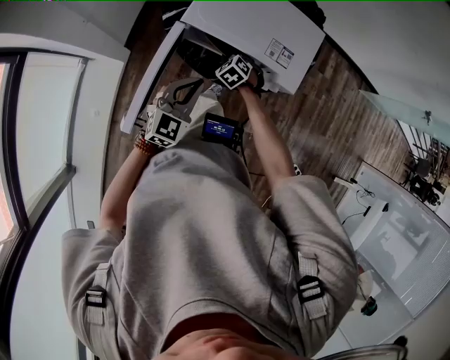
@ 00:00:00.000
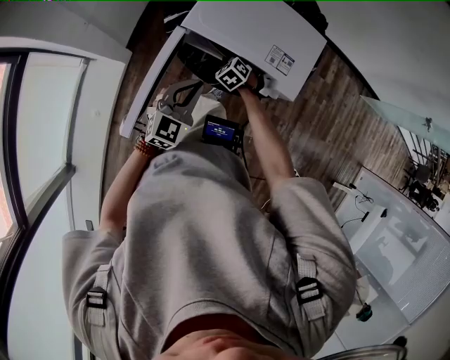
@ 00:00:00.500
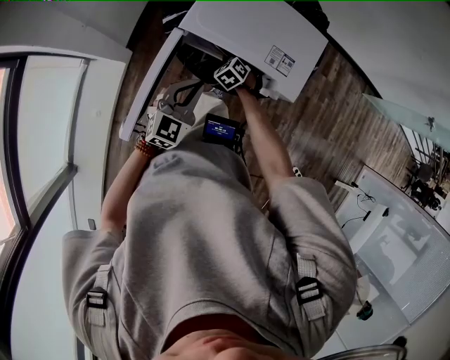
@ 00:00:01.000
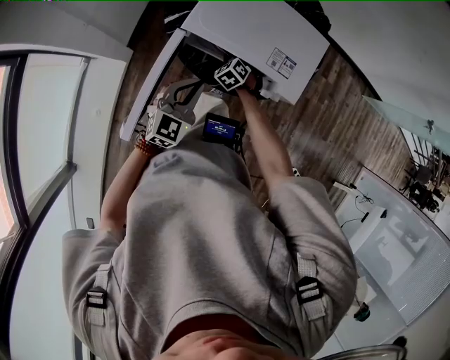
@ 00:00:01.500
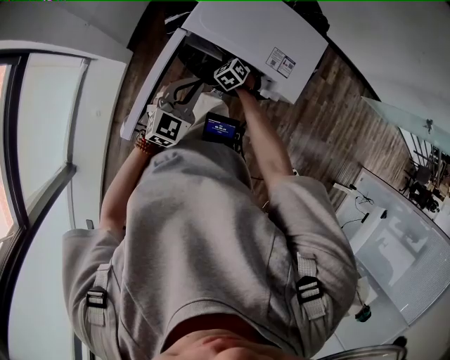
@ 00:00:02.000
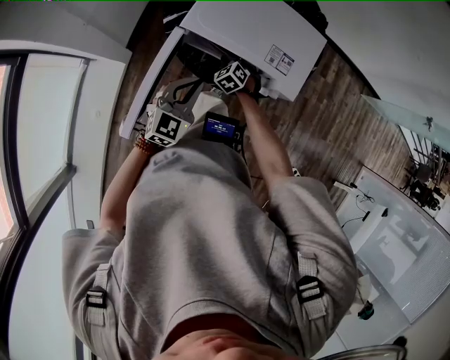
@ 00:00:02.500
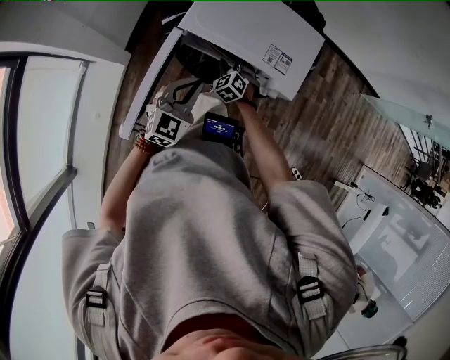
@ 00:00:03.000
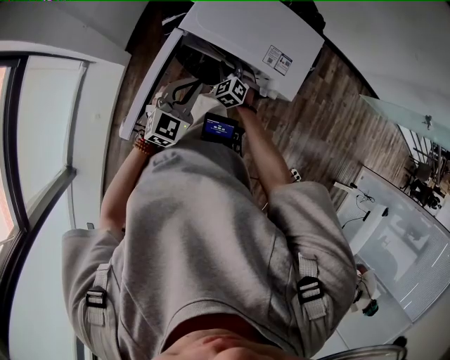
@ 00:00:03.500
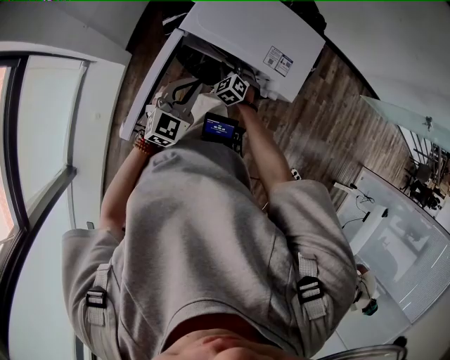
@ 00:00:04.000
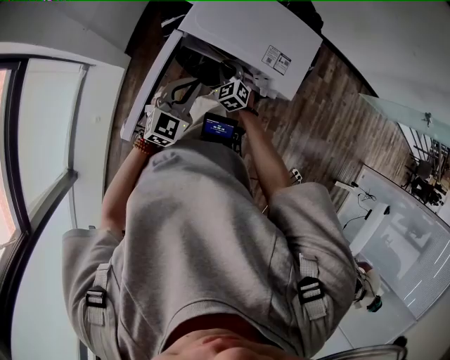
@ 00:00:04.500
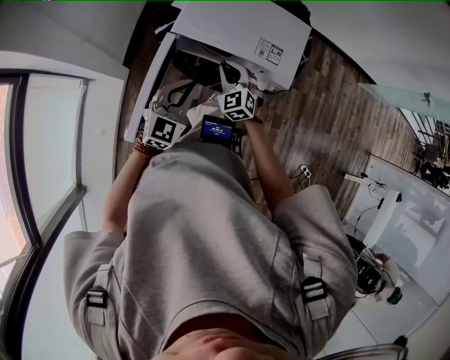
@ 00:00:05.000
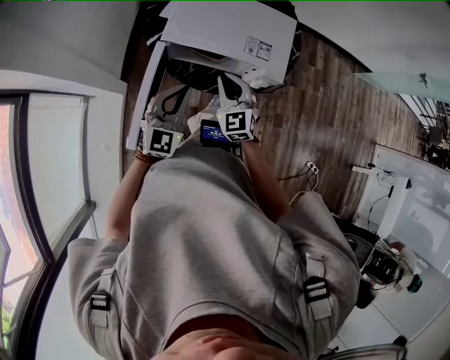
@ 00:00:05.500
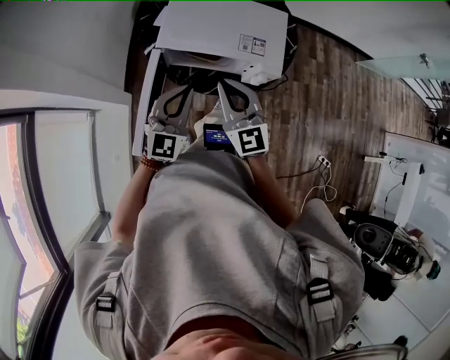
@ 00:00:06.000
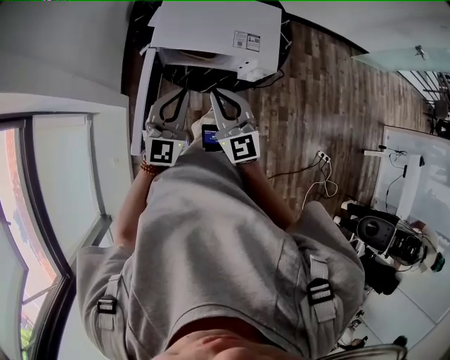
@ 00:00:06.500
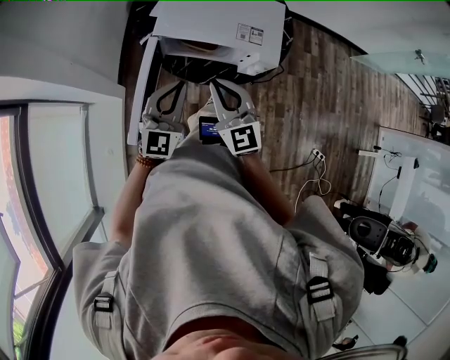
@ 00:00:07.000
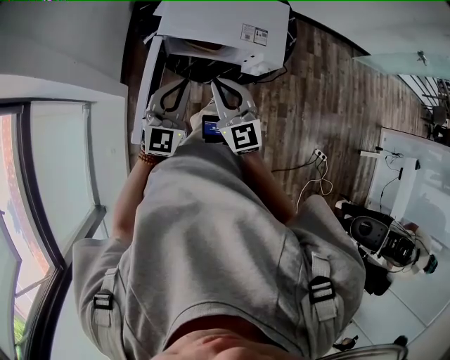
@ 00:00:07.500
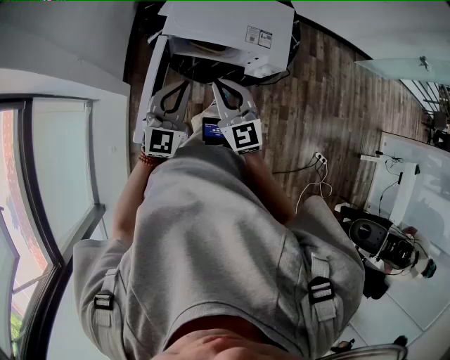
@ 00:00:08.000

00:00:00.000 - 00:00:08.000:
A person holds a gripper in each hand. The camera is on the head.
00:00:00.000 - 00:00:02.000: The grippers move only a little.
00:00:02.000 - 00:00:04.000: The grippers move only a little.
00:00:04.000 - 00:00:06.000: The right gripper is displaced upward and backward by some 35 cm, and tips its fingers upward by roughly 40 degrees, while the left gripper moves upward, about 10 cm.
00:00:06.000 - 00:00:08.000: The right gripper changes place by approximately 5 cm.

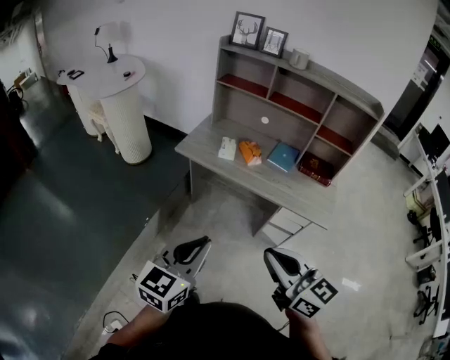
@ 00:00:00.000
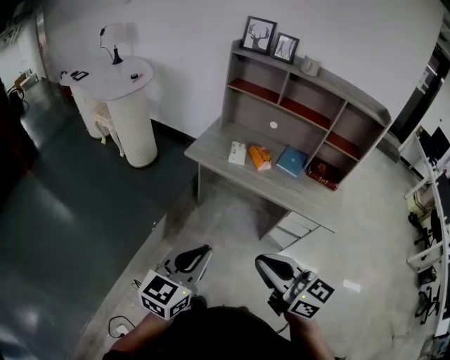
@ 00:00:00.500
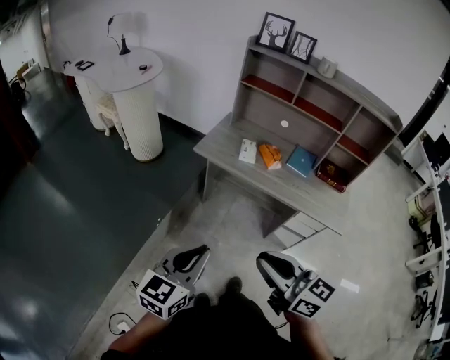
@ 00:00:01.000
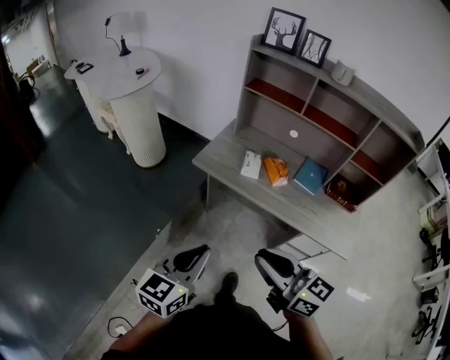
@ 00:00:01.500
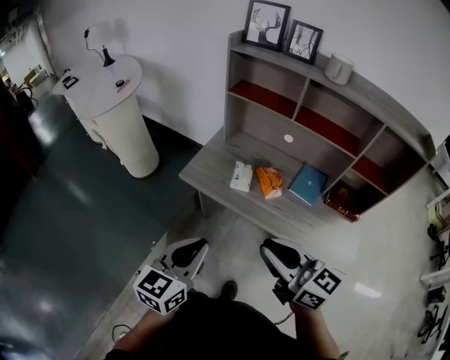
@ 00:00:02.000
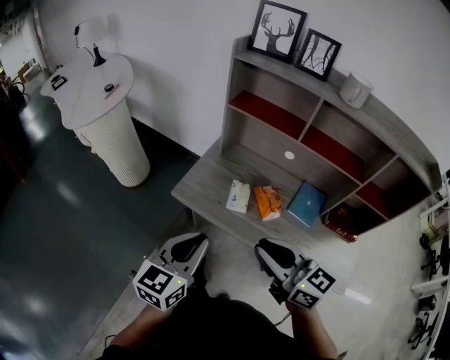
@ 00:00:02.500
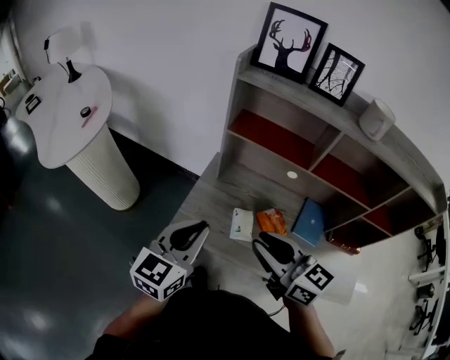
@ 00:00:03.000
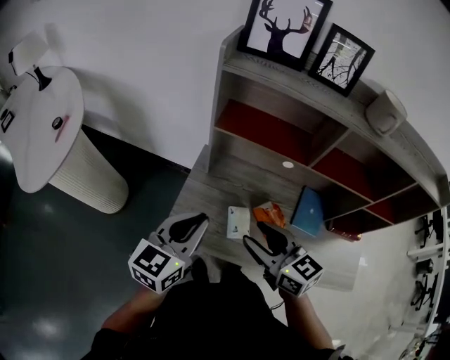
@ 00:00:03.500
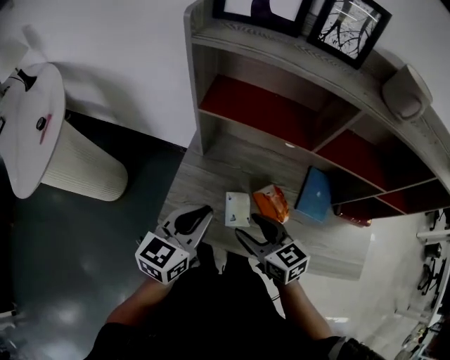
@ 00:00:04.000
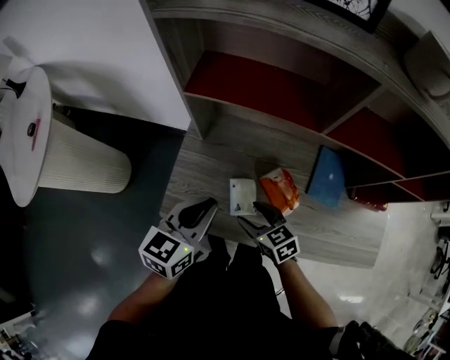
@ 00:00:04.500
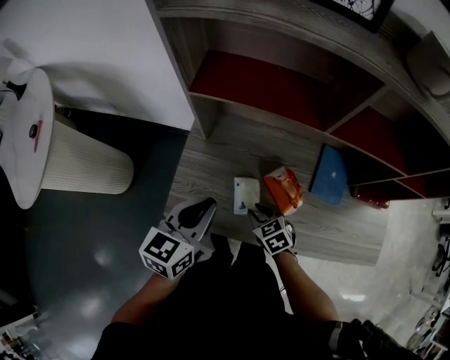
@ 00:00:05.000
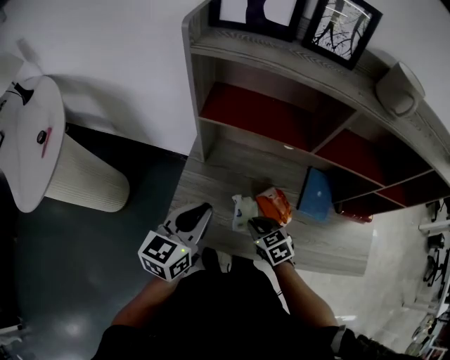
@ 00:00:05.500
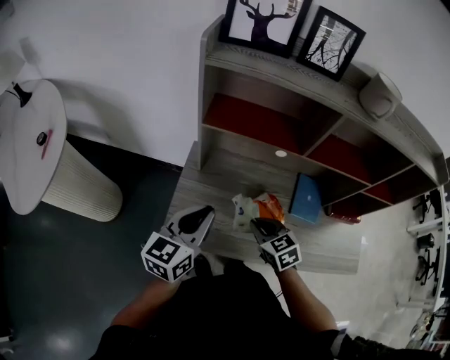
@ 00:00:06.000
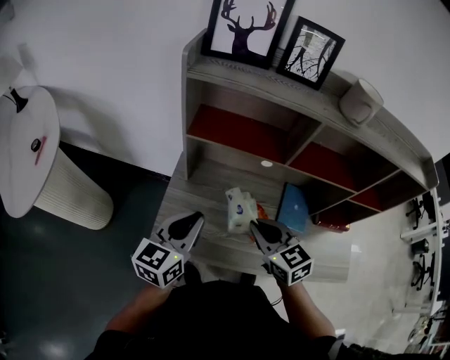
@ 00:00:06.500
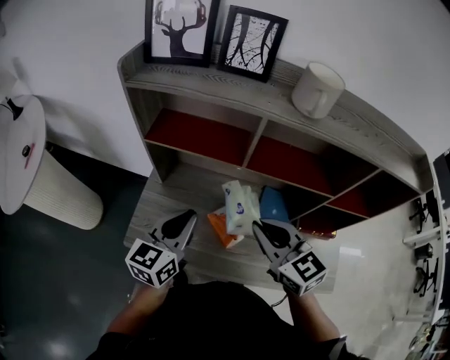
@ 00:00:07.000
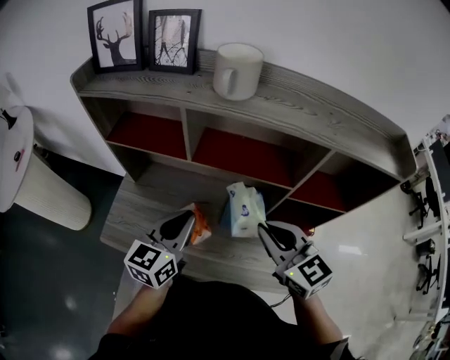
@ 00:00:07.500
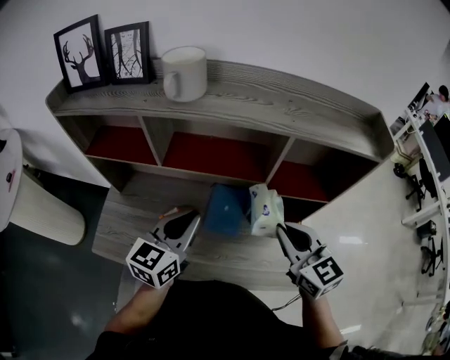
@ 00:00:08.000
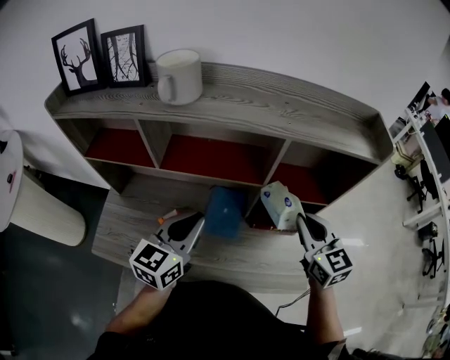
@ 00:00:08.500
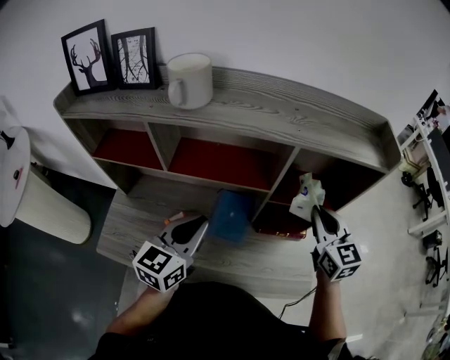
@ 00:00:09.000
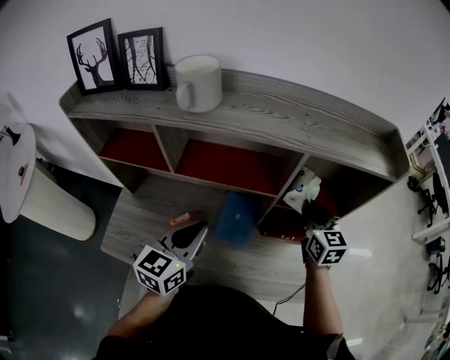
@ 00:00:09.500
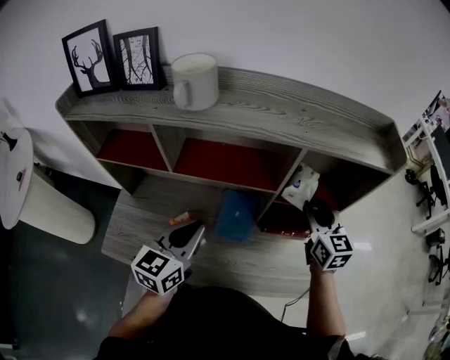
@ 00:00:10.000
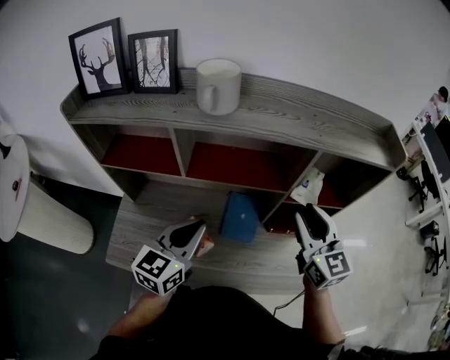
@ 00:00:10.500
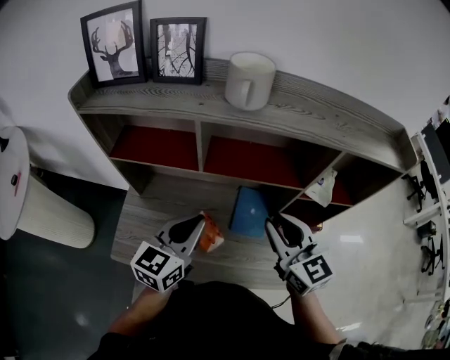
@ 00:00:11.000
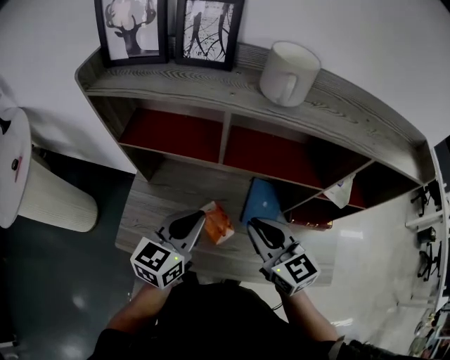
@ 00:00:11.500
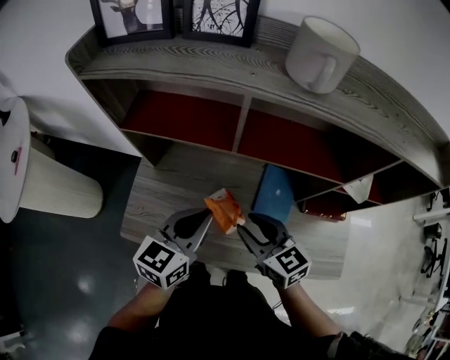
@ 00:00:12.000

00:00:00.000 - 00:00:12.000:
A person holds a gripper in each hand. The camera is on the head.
00:00:00.000 - 00:00:02.000: Both grippers move forward, roughly 25 cm.
00:00:02.000 - 00:00:04.000: The left gripper shifts roughly 40 cm forward; the right gripper travels forward and downward by approximately 40 cm, turns by some 30 degrees, and opens its fingers.
00:00:04.000 - 00:00:06.000: The right gripper moves some 20 cm downward and comes back, swivels about 20 degrees, and closes up.
00:00:06.000 - 00:00:08.000: The left gripper goes approximately 35 cm to the right. The right gripper shifts about 50 cm to the right and upward, and changes its angle by about 30 degrees.
00:00:08.000 - 00:00:10.000: The right gripper moves forward and to the right, roughly 15 cm, and turns by about 20 degrees.
00:00:10.000 - 00:00:12.000: The left gripper goes about 15 cm to the left. Meanwhile the right gripper travels to the left by about 35 cm, and rotates about 30 degrees.

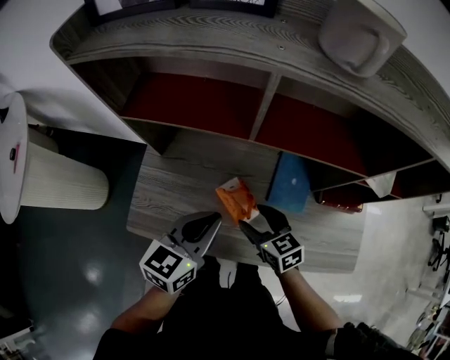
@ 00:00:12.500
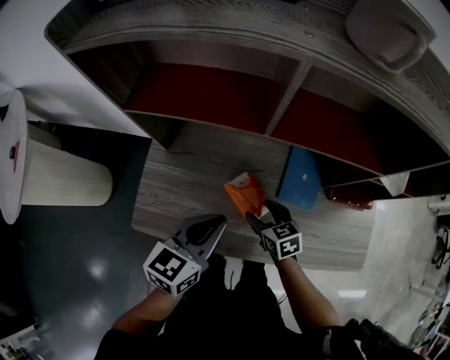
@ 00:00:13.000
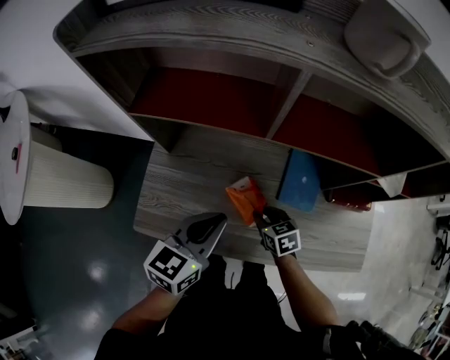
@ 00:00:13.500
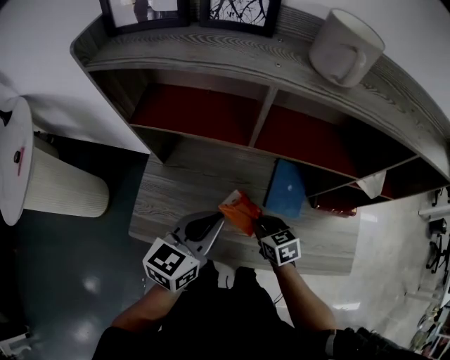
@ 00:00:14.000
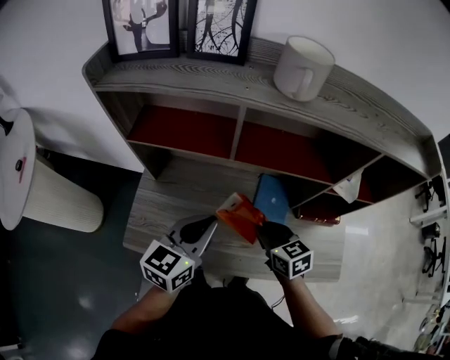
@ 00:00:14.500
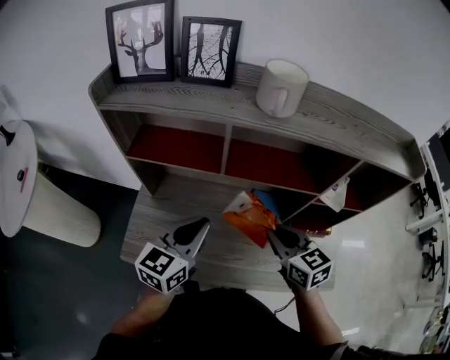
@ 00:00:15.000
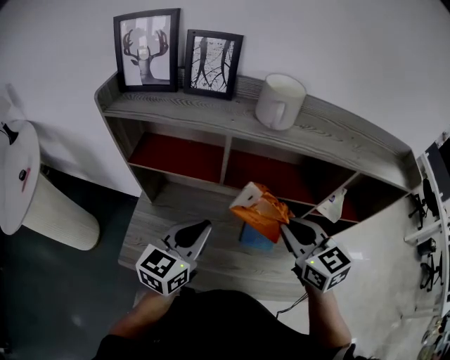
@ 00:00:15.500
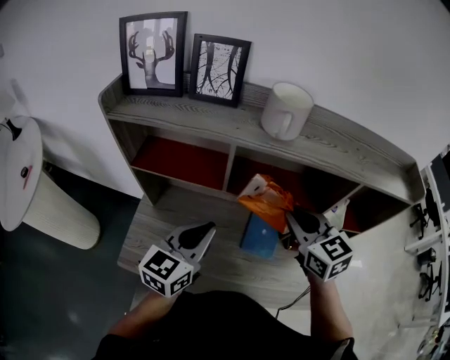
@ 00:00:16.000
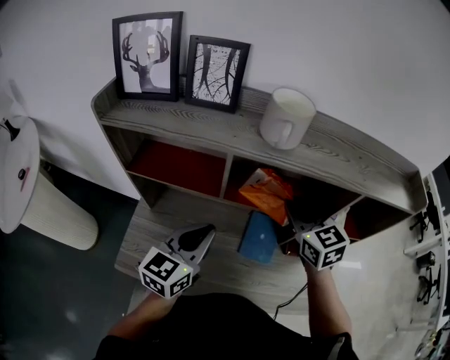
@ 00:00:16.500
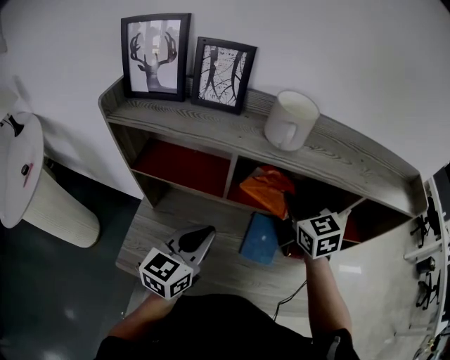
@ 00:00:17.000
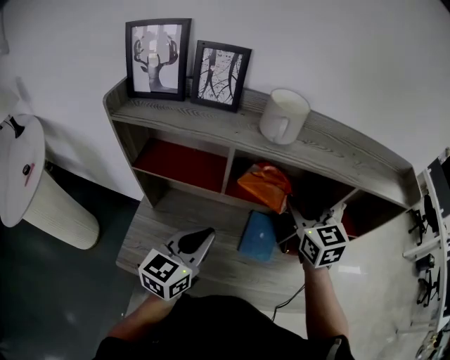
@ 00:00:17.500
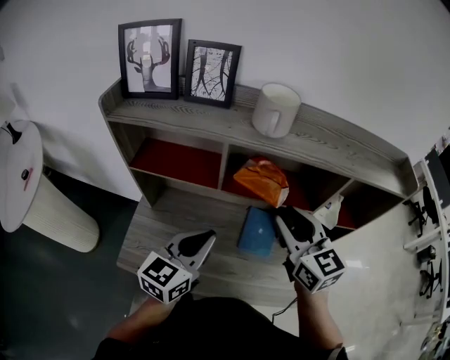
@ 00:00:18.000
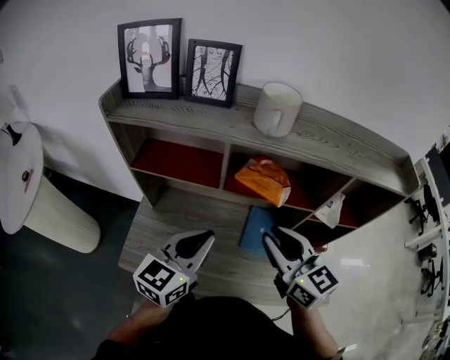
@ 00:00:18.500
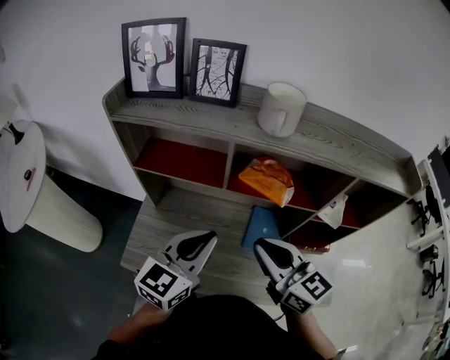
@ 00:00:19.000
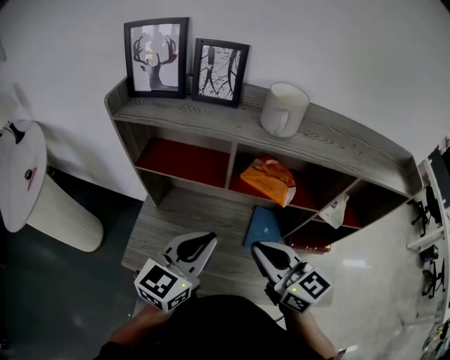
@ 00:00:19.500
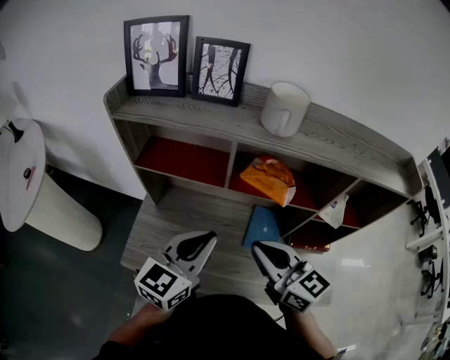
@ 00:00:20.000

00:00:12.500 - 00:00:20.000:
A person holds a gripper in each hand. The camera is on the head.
00:00:12.500 - 00:00:14.500: The left gripper shifts approximately 5 cm upward. Meanwhile the right gripper goes roughly 10 cm upward and to the right, and closes up.
00:00:14.500 - 00:00:16.500: The right gripper heads upward and forward, covering some 25 cm, and turns by about 20 degrees; the left gripper shifts roughly 5 cm forward.
00:00:16.500 - 00:00:18.000: The right gripper is displaced backward by approximately 10 cm; the left gripper ends up approximately 5 cm from where it was.
00:00:18.000 - 00:00:20.000: The right gripper shifts approximately 10 cm to the left and backward, and changes its angle by approximately 20 degrees.
